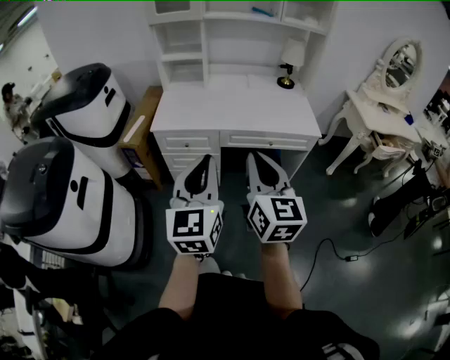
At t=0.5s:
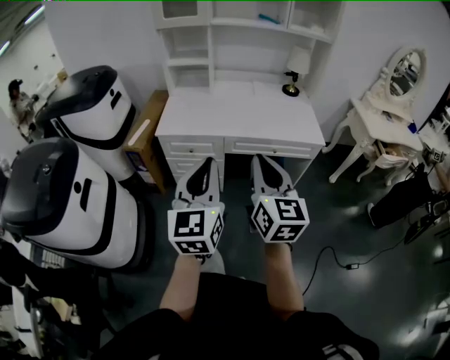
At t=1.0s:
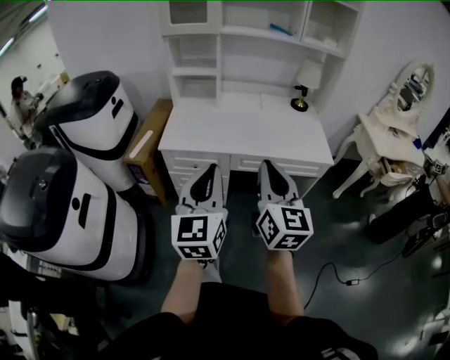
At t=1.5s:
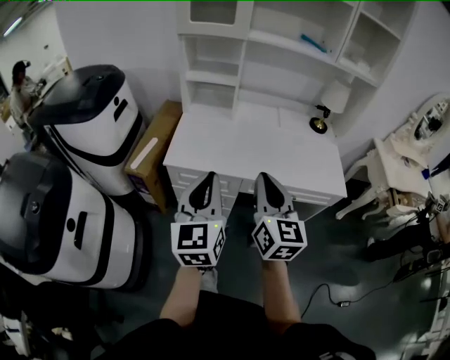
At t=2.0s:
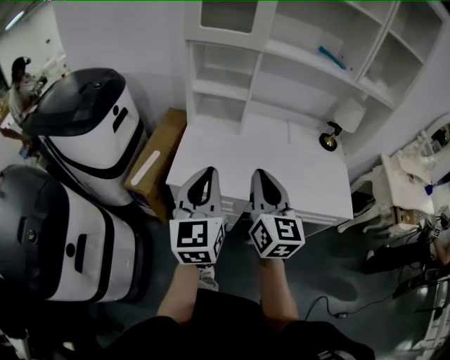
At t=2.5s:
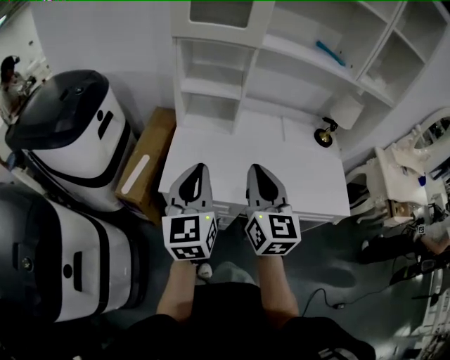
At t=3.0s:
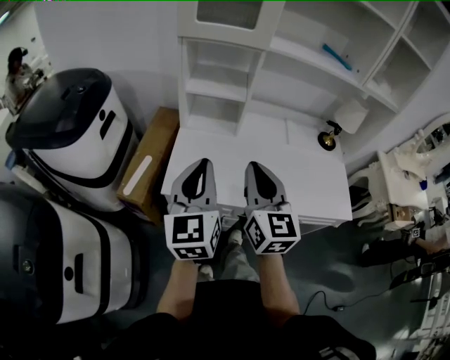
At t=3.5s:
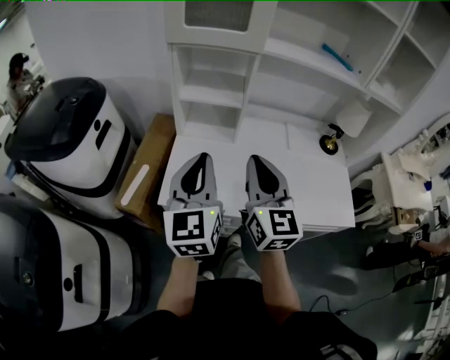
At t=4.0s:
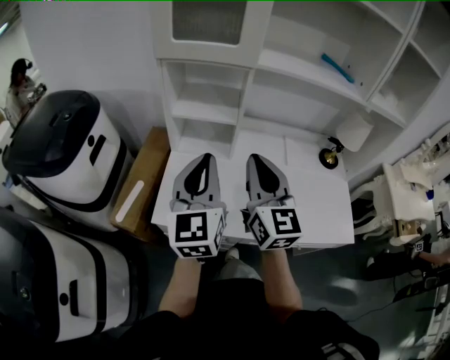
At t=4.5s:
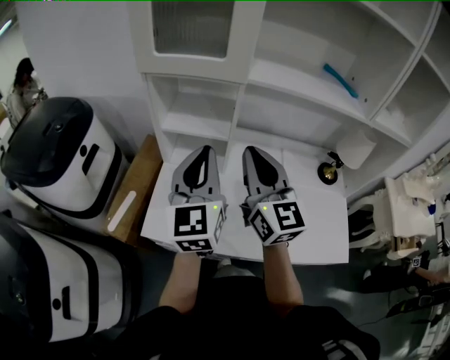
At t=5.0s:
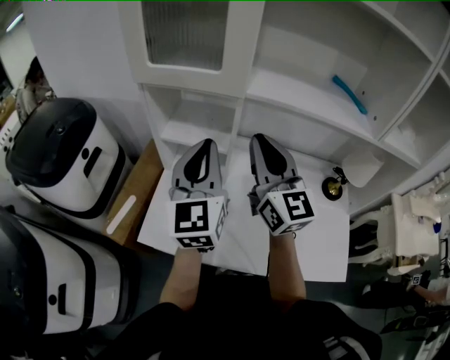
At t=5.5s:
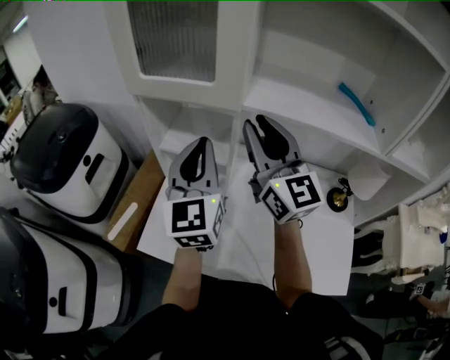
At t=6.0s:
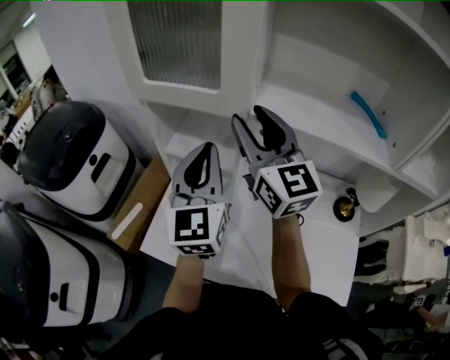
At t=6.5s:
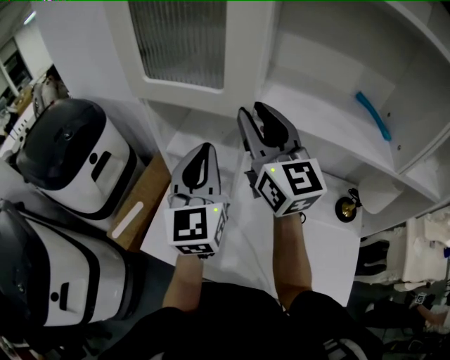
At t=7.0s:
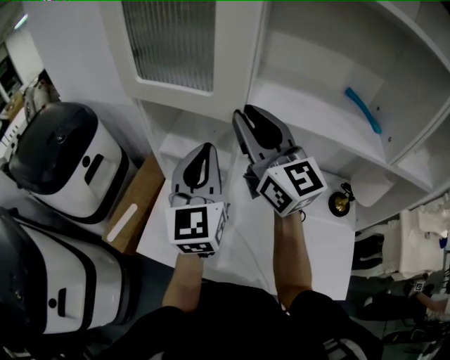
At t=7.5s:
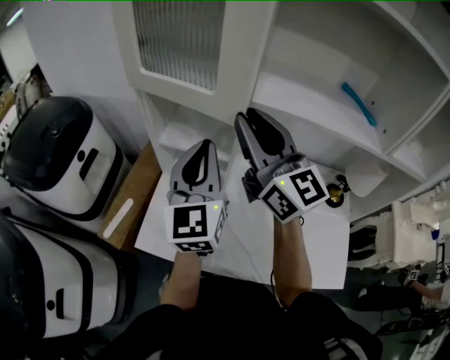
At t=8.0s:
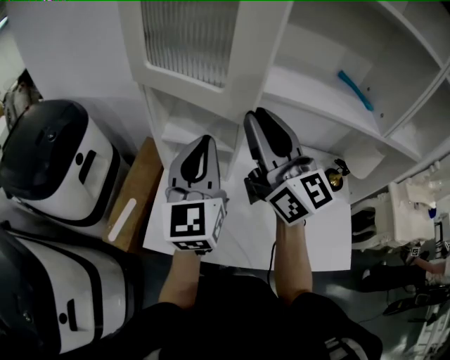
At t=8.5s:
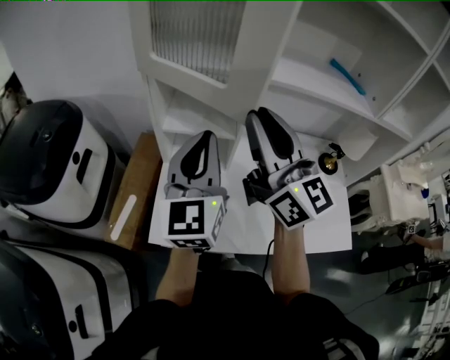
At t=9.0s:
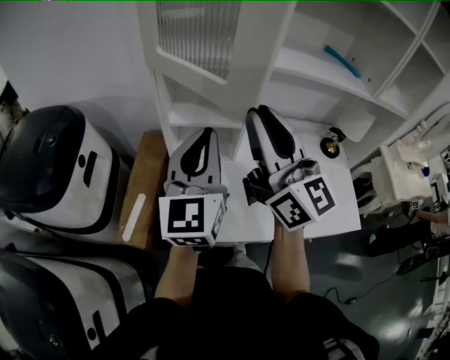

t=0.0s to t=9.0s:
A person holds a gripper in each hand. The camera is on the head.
t=0.0s to t=2.0s: Both grippers travel together forward, roughly 35 cm.
t=2.0s to t=4.5s: The two grippers go about 25 cm forward.
t=4.5s to t=7.0s: The left gripper heads forward and to the right, covering some 10 cm. Meanwhile the right gripper goes about 15 cm forward and upward, and opens and closes again.
t=7.0s to t=9.0s: The left gripper travels to the left and backward by roughly 15 cm, and turns by some 20 degrees. Meanwhile the right gripper shifts some 15 cm backward and to the left.

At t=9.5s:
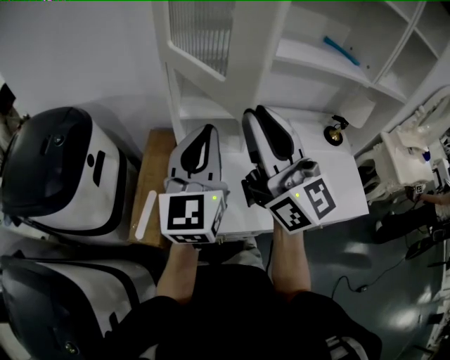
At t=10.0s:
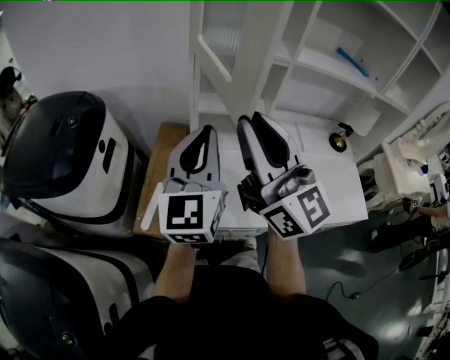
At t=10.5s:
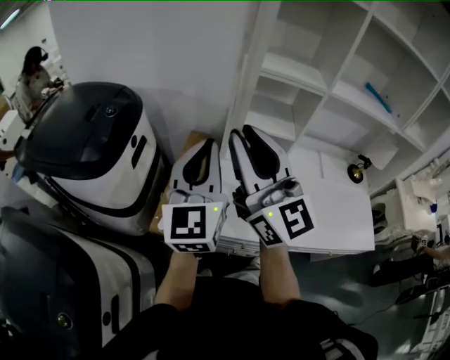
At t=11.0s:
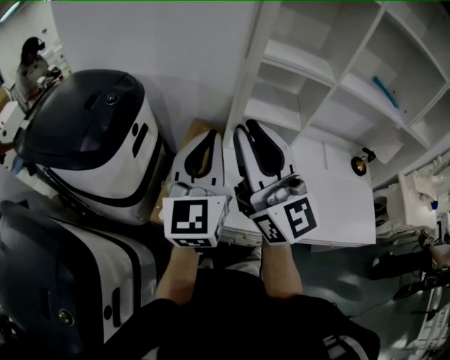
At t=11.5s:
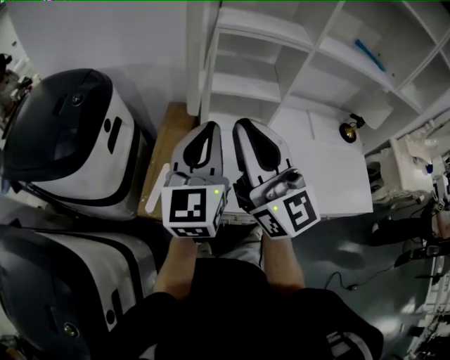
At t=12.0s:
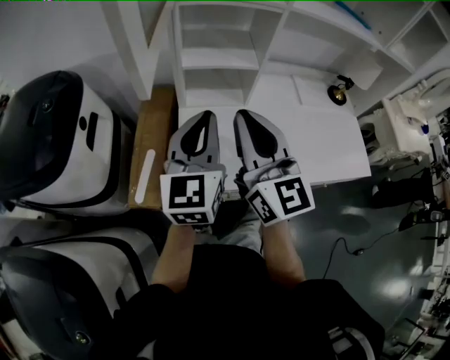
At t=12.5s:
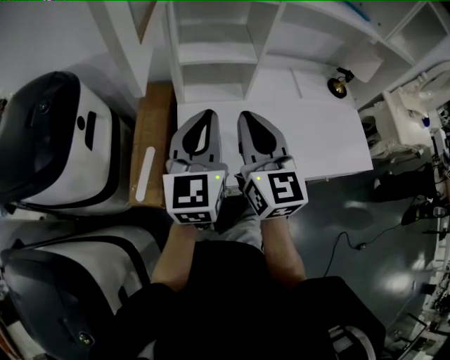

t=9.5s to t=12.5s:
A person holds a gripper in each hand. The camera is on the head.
t=9.5s to t=11.0s: The two grippers go roughly 15 cm to the left.
t=11.0s to t=12.5s: The two grippers go roughly 20 cm to the right and downward. The right gripper changes its angle by approximately 40 degrees.

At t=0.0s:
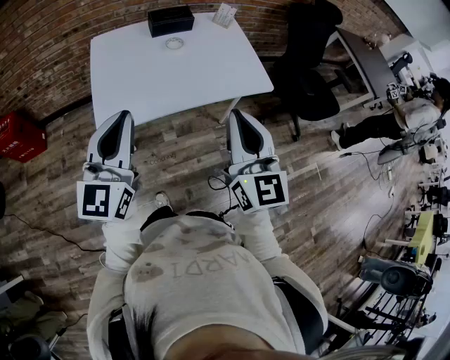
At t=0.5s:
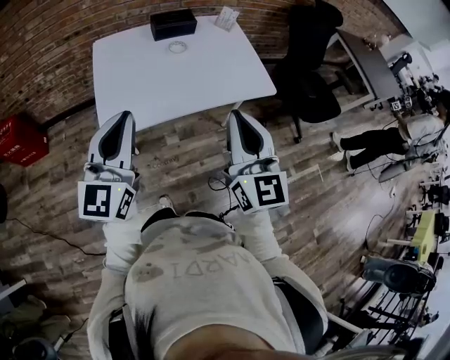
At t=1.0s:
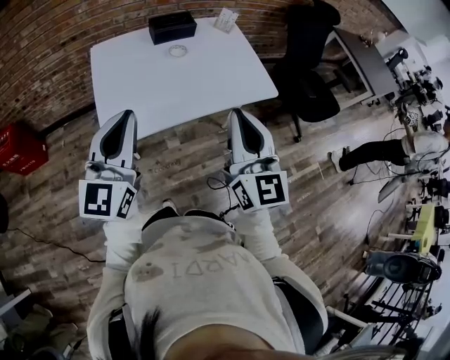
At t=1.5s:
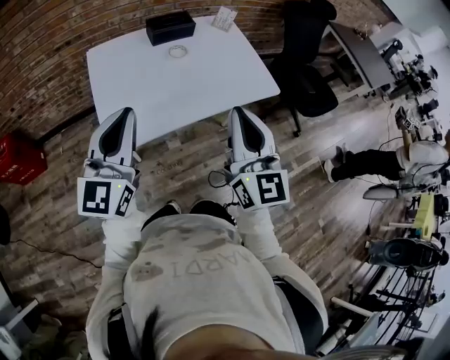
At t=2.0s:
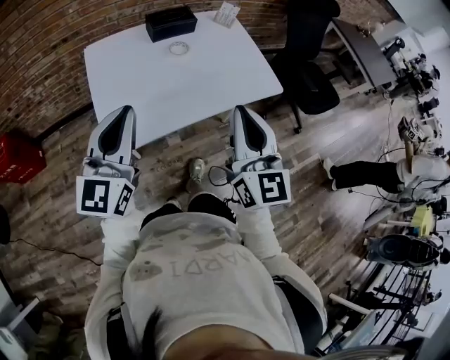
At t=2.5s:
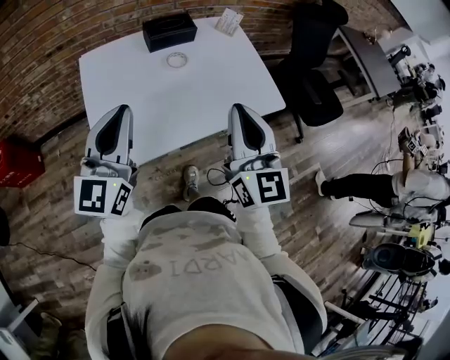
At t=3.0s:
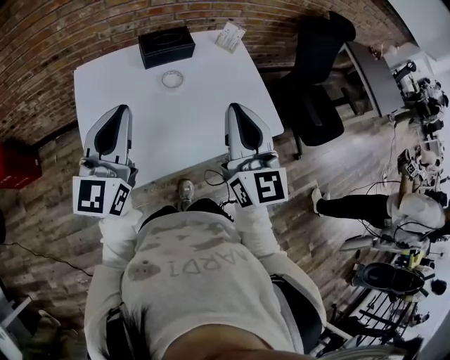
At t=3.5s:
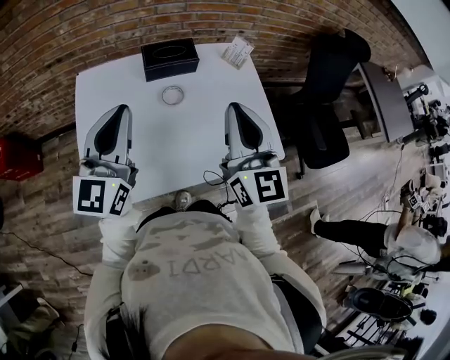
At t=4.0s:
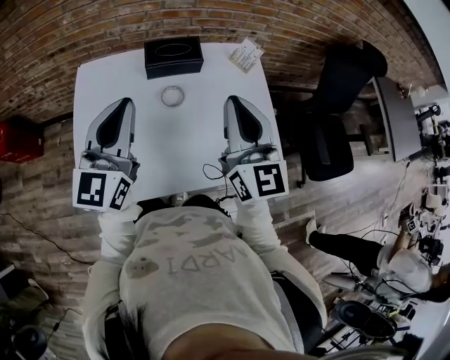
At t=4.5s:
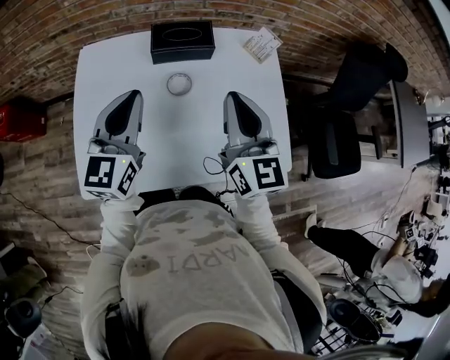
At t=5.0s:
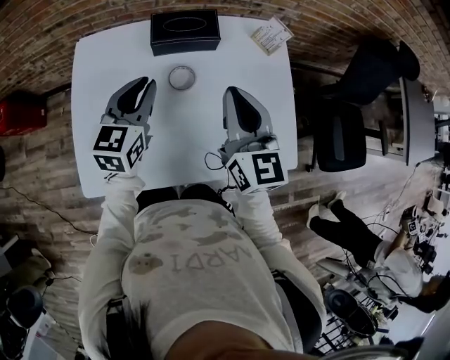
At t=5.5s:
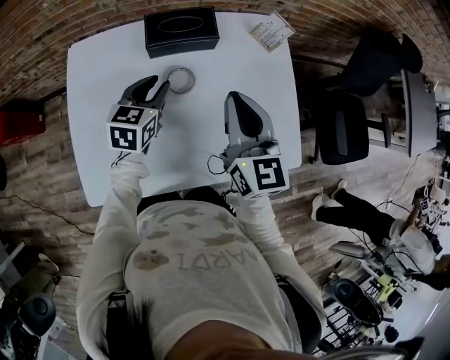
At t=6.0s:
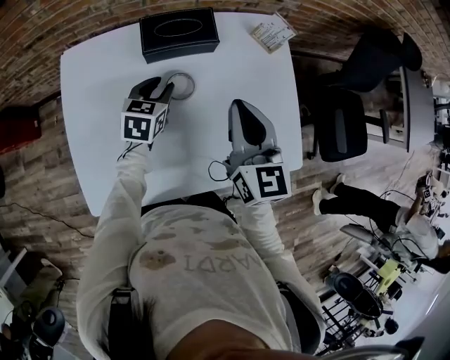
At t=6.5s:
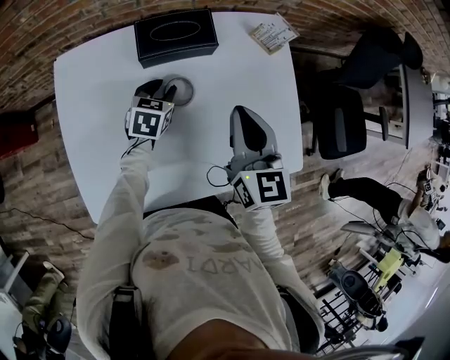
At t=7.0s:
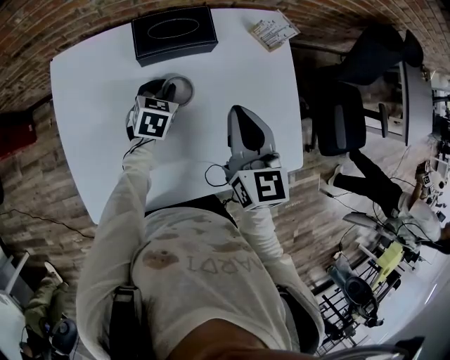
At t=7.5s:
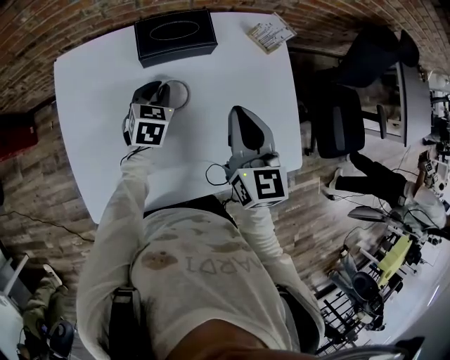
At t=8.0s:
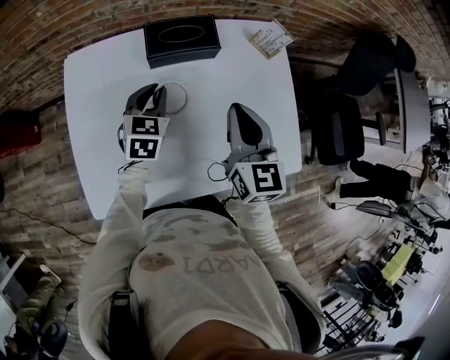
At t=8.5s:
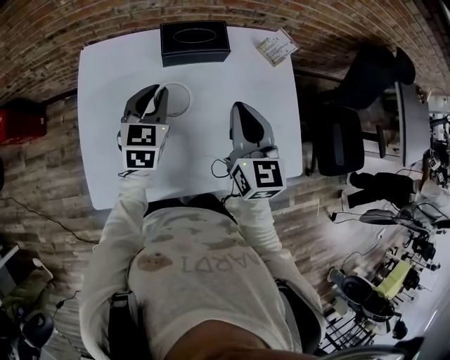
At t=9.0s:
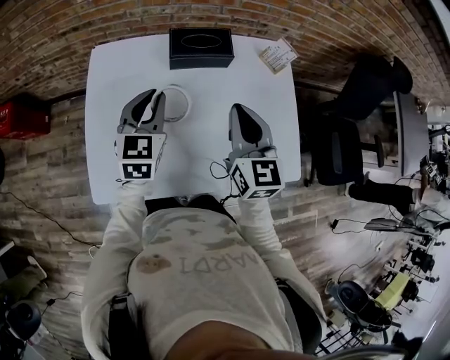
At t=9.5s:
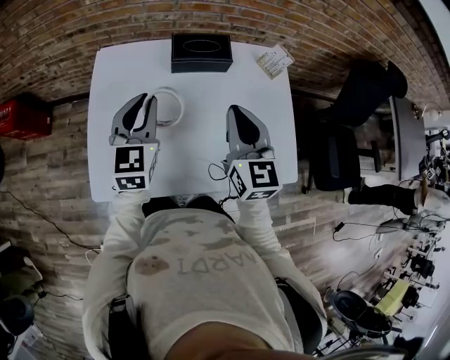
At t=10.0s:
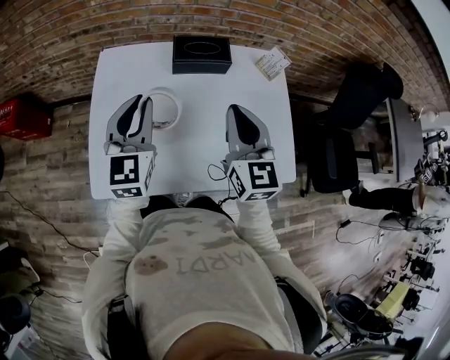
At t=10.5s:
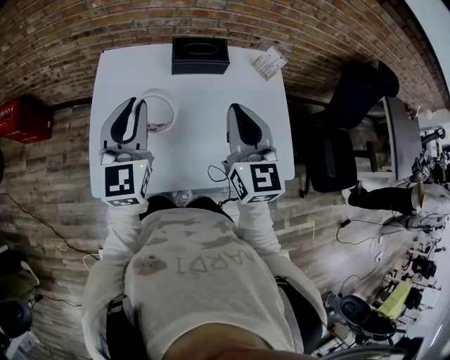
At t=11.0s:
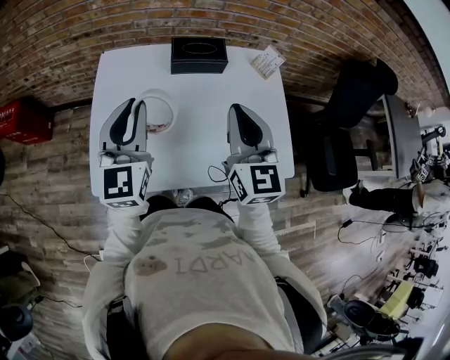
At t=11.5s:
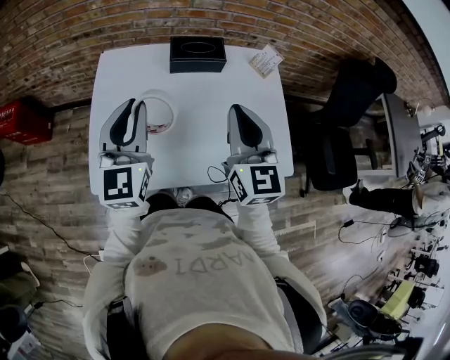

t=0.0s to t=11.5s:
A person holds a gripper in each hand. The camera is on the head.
t=0.0s to t=2.0s: Both grippers travel together forward and to the left, approximately 10 cm.
t=2.0s to t=4.0s: Both grippers travel together forward, roughly 30 cm.
t=4.0s to t=6.0s: The right gripper heads downward and forward, covering some 15 cm. Meanwhile the left gripper travels downward and forward by approximately 35 cm, tilts its fingers roughly 50 degrees downward, and opens.
t=7.5s to t=9.5s: The left gripper goes roughly 25 cm upward, backward and to the left, and turns by approximately 30 degrees, while the right gripper moves upward and backward, some 10 cm.
t=9.5s to t=11.5s: The left gripper heads upward and backward, covering about 10 cm. Meanwhile the right gripper travels backward and upward by roughly 10 cm.

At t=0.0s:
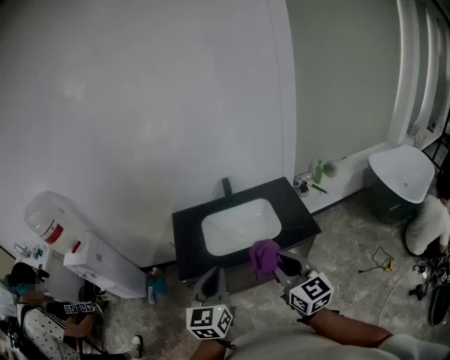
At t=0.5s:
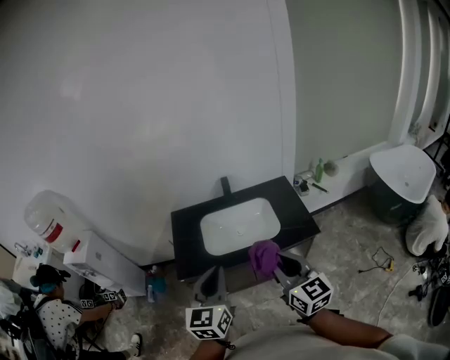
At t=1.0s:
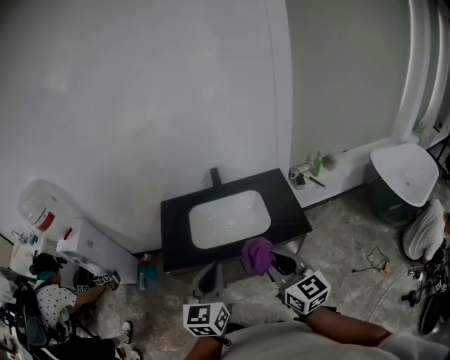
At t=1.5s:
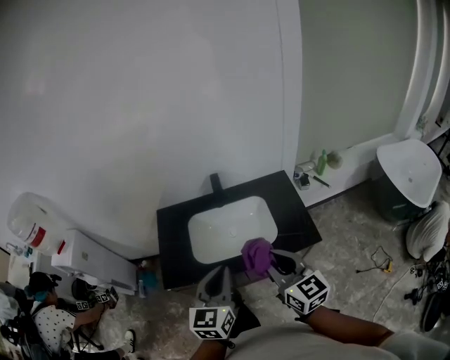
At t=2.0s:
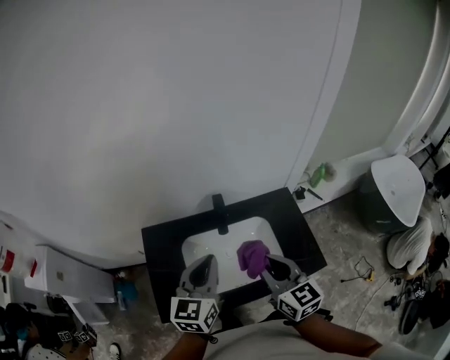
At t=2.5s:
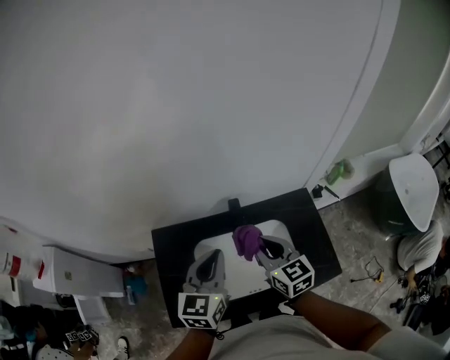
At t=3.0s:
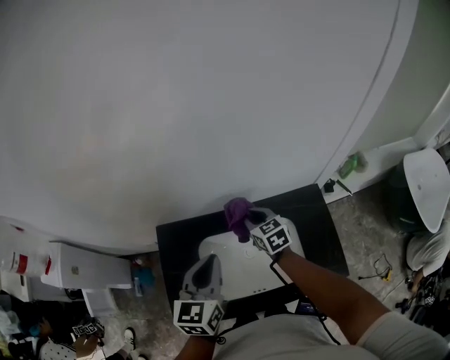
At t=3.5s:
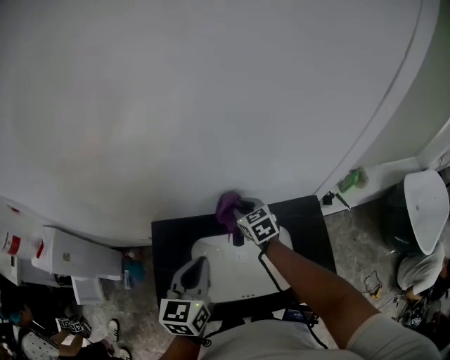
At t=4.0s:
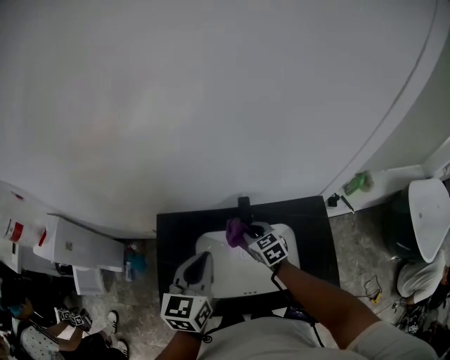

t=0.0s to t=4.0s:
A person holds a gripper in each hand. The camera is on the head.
t=0.0s to t=2.0s: The grippers both shift forward by some 35 cm.
t=2.0s to t=4.0s: The left gripper travels forward by approximately 10 cm; the right gripper travels forward and downward by roughly 30 cm, and turns by some 30 degrees.
